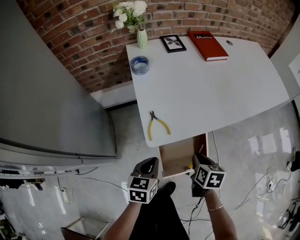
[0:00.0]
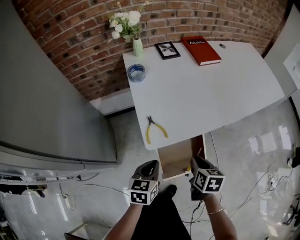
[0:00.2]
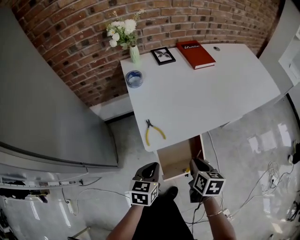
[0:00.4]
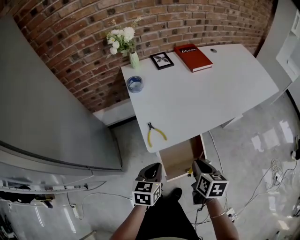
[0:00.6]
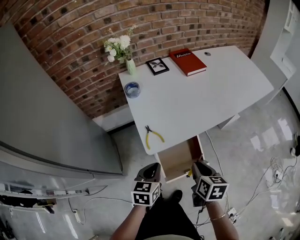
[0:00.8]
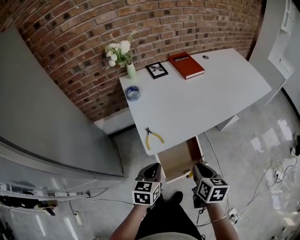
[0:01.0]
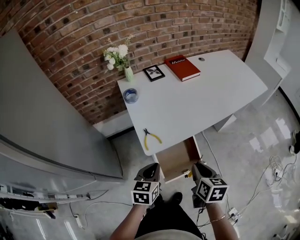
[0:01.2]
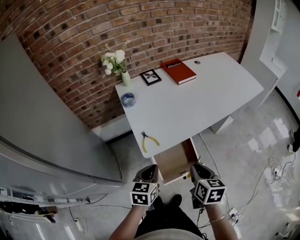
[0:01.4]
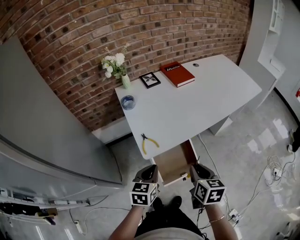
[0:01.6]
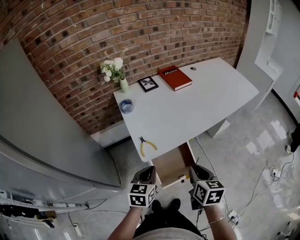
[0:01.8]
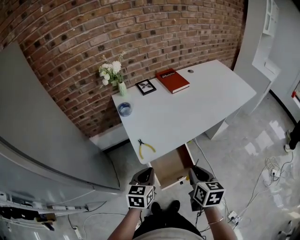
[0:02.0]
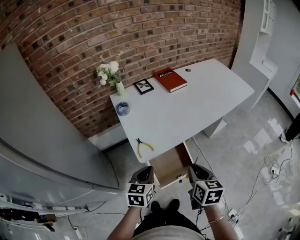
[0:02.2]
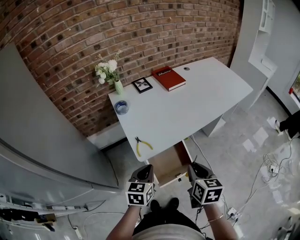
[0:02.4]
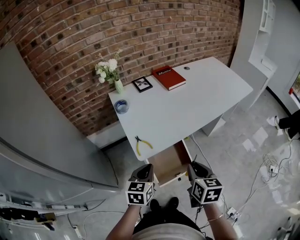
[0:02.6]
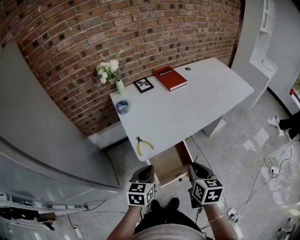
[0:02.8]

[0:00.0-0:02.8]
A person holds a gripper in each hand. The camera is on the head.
0:00.0 to 0:01.4: The right gripper moves upward and backward, some 15 cm, while the left gripper heads upward, covering about 10 cm.
0:01.4 to 0:02.8: The grippers make only small movements.

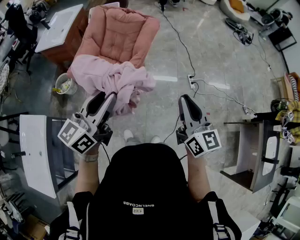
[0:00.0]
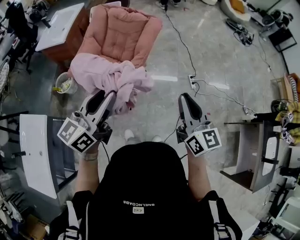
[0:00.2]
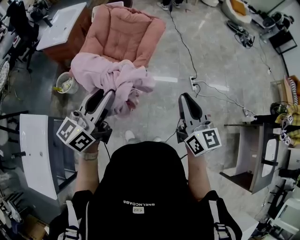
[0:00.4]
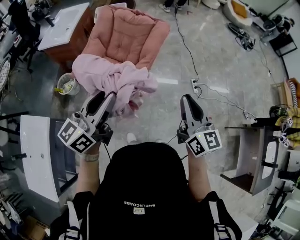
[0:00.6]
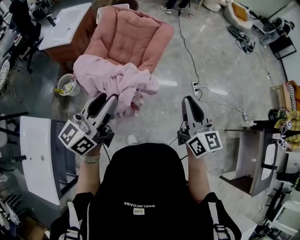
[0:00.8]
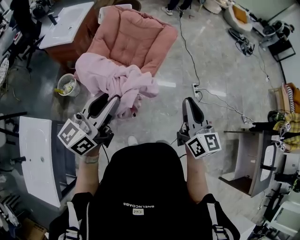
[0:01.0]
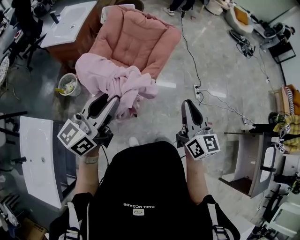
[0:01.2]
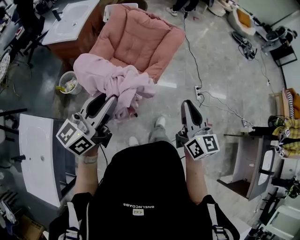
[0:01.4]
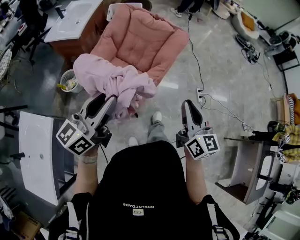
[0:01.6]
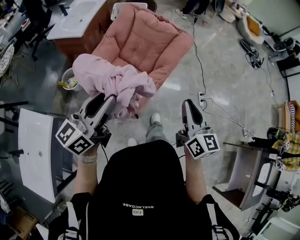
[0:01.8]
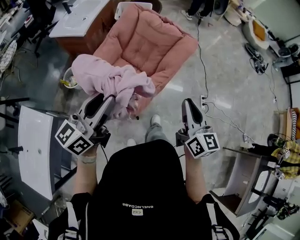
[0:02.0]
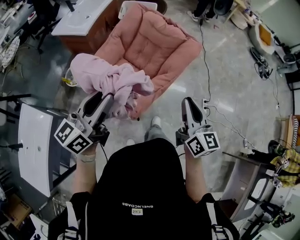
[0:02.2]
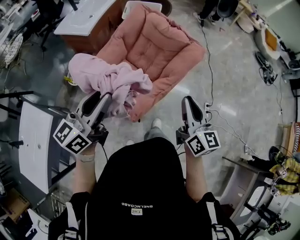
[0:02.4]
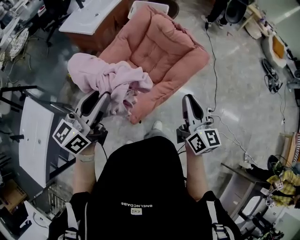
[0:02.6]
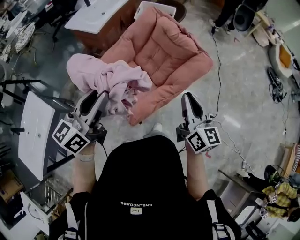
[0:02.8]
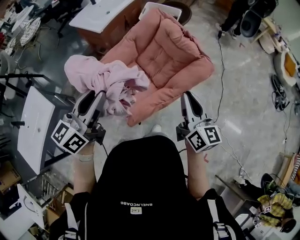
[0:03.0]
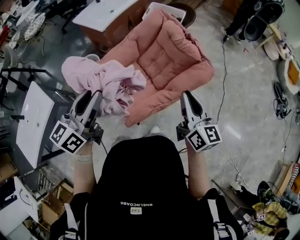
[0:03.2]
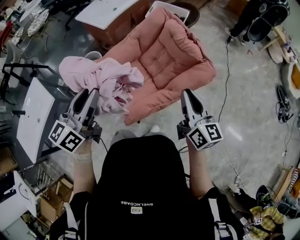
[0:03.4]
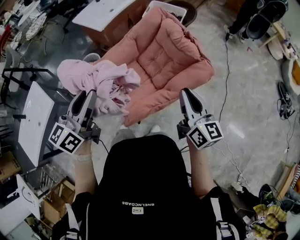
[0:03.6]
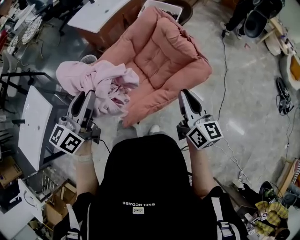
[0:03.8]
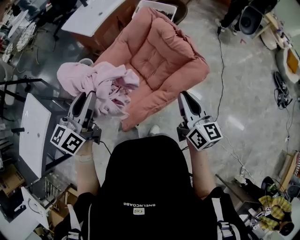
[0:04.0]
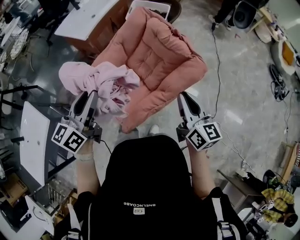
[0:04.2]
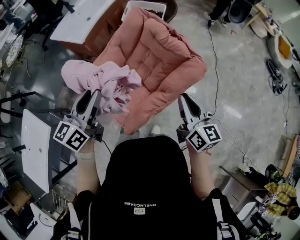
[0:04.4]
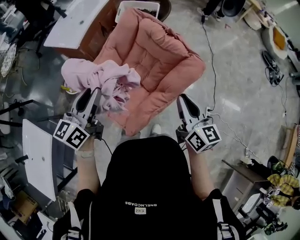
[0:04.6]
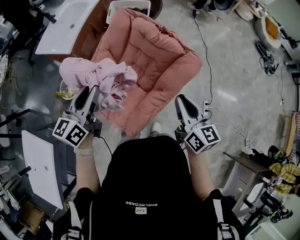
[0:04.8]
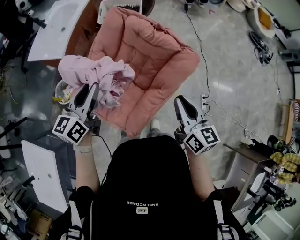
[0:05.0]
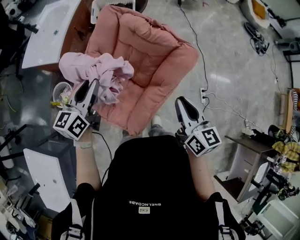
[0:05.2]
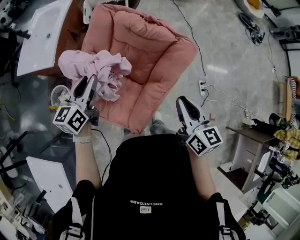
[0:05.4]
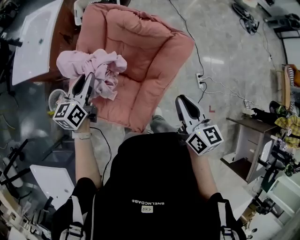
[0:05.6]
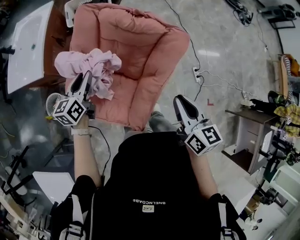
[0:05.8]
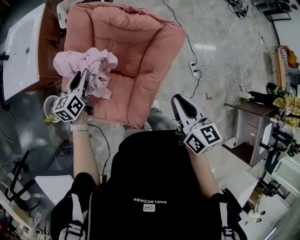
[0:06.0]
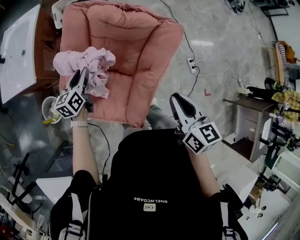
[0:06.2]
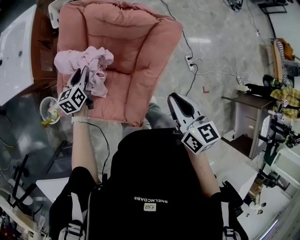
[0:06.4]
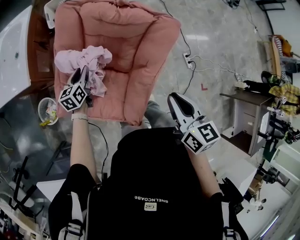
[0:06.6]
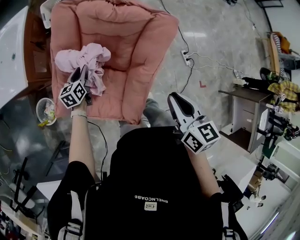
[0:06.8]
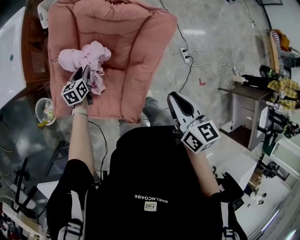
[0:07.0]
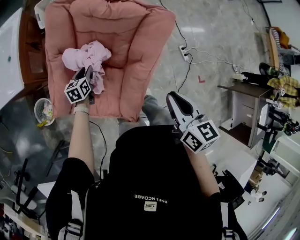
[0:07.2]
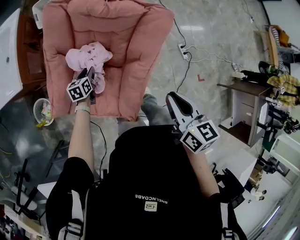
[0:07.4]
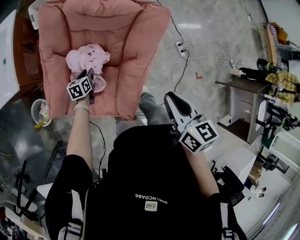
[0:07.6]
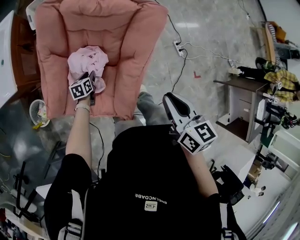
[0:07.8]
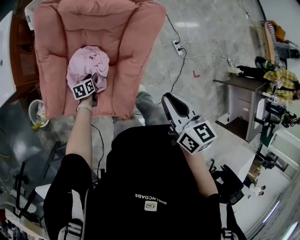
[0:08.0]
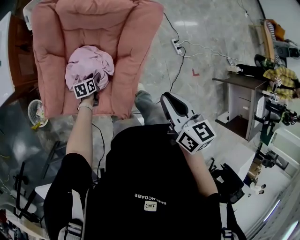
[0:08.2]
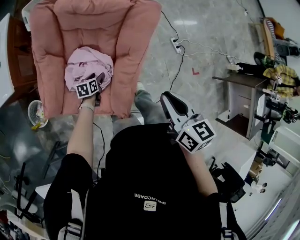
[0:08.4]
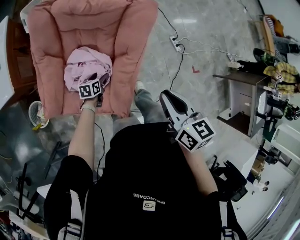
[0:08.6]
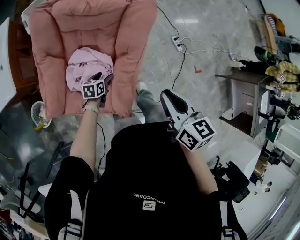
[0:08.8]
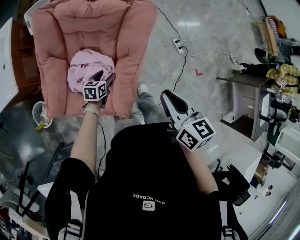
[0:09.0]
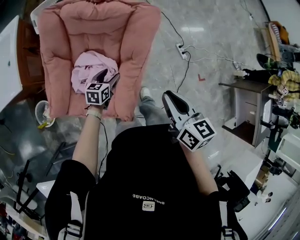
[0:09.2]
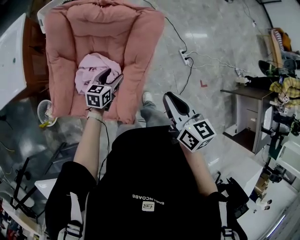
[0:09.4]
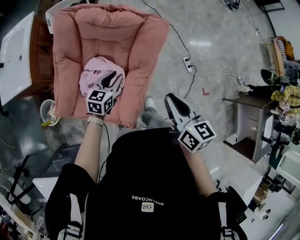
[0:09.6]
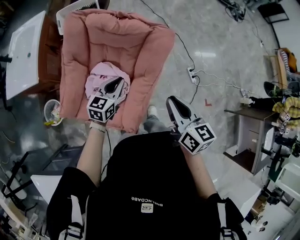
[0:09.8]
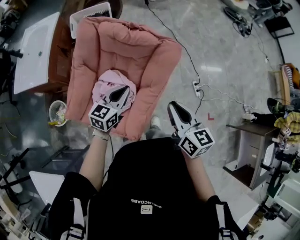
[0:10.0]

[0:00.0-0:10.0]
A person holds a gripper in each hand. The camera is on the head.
0:00.0 to 0:01.4: The two grippers go approximately 20 cm to the left.
0:01.4 to 0:02.8: The left gripper is displaced forward by about 20 cm, and swivels about 30 degrees, while the right gripper shifts approximately 25 cm forward, and rotates approximately 20 degrees.
0:02.8 to 0:04.2: The two grippers go some 10 cm forward.
0:04.2 to 0:05.8: The right gripper ends up roughly 10 cm from where it was, and changes its angle by approximately 30 degrees. Meanwhile the left gripper changes place by approximately 30 cm, and rotates some 30 degrees.
0:05.8 to 0:07.2: The left gripper is displaced downward by some 25 cm, and swivels about 20 degrees.
0:07.2 to 0:08.6: The right gripper changes place by some 5 cm. The left gripper heads to the right, downward and backward, covering approximately 20 cm, turns by approximately 20 degrees, and opens its fingers.
0:08.6 to 0:10.0: The right gripper moves forward, about 5 cm; the left gripper shifts roughly 30 cm upward, changes its angle by roughly 40 degrees, and closes up.

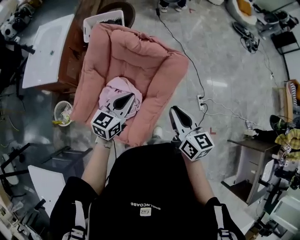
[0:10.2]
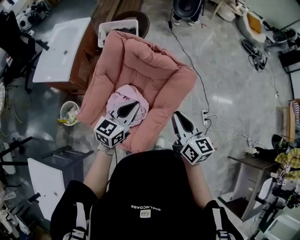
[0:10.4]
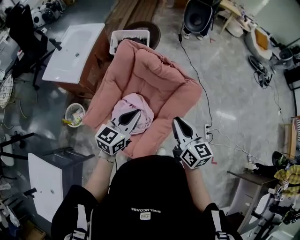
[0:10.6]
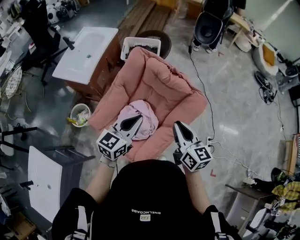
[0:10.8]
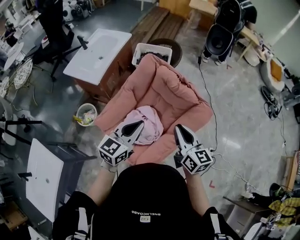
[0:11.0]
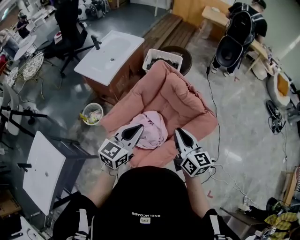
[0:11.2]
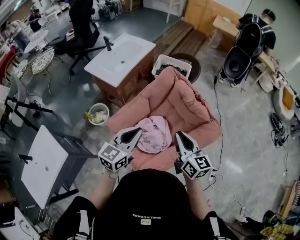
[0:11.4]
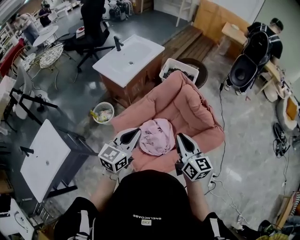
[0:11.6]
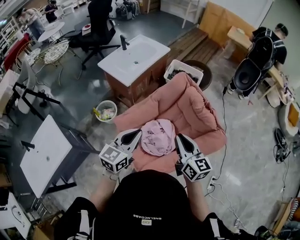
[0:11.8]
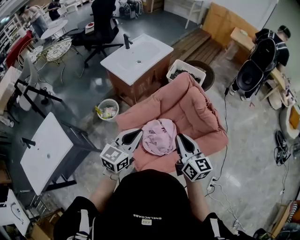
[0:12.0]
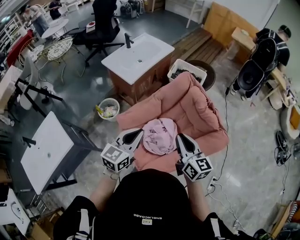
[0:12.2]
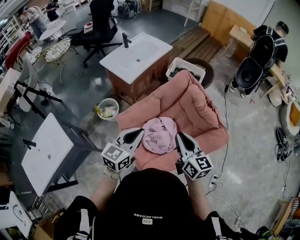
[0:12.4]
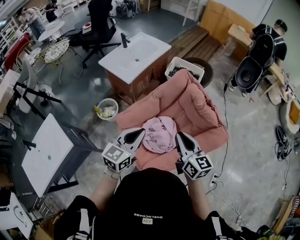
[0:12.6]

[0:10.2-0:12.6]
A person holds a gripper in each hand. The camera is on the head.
0:10.2 to 0:11.4: The left gripper changes place by roughly 20 cm, and turns by roughly 30 degrees; the right gripper moves some 15 cm, and changes its angle by about 30 degrees.
0:11.4 to 0:12.6: There are only small adjustments of the grippers.

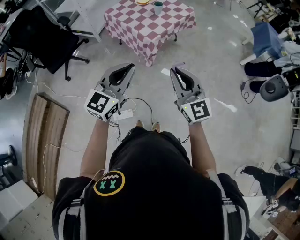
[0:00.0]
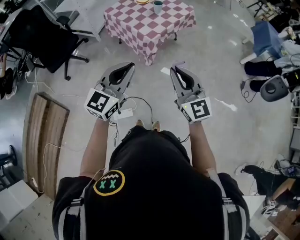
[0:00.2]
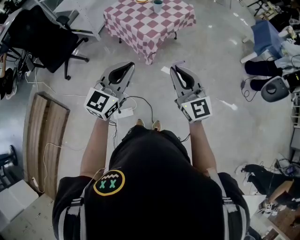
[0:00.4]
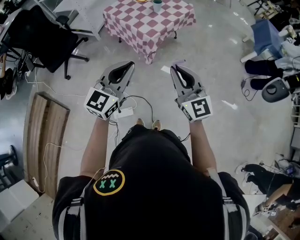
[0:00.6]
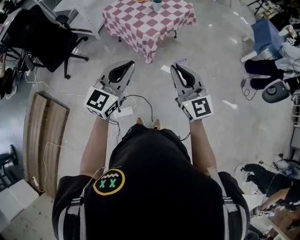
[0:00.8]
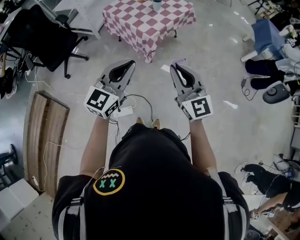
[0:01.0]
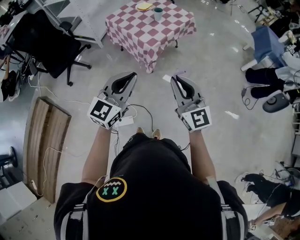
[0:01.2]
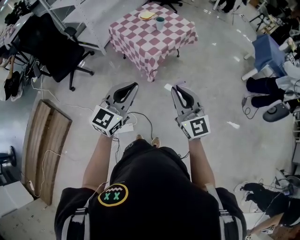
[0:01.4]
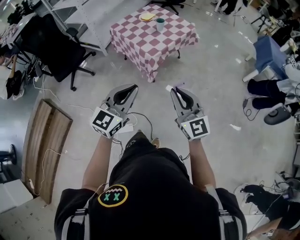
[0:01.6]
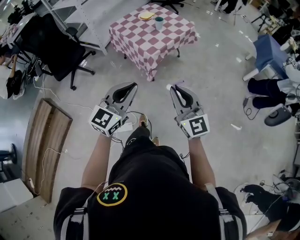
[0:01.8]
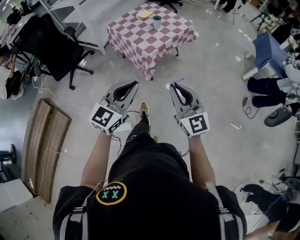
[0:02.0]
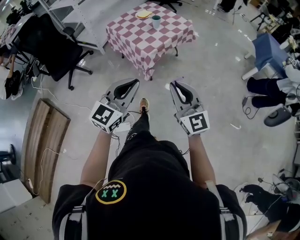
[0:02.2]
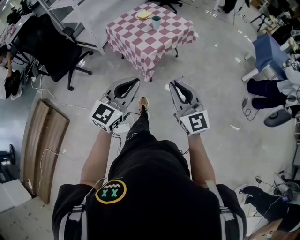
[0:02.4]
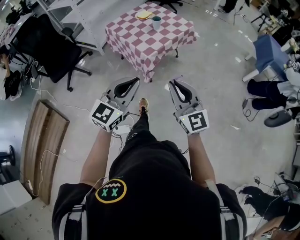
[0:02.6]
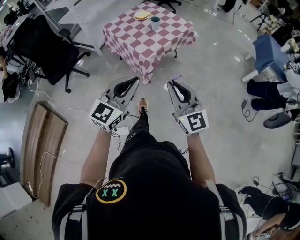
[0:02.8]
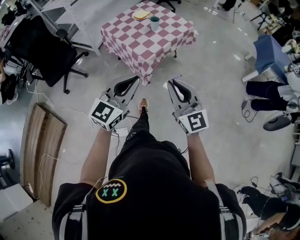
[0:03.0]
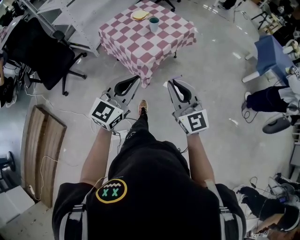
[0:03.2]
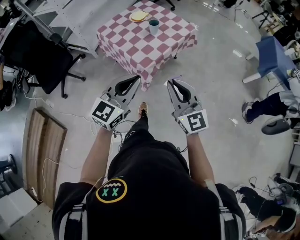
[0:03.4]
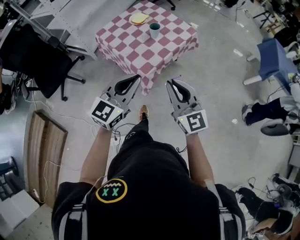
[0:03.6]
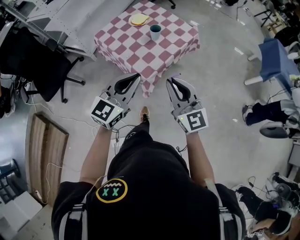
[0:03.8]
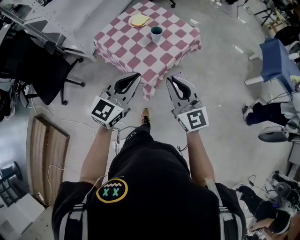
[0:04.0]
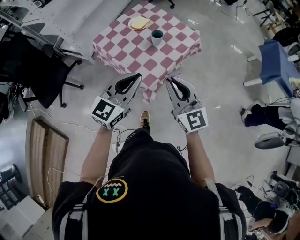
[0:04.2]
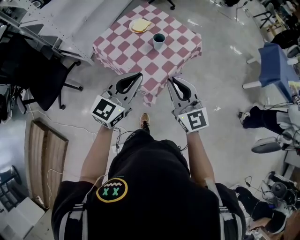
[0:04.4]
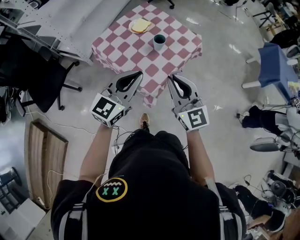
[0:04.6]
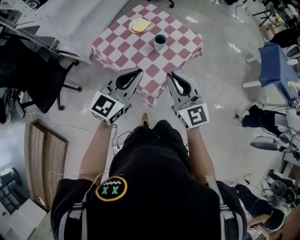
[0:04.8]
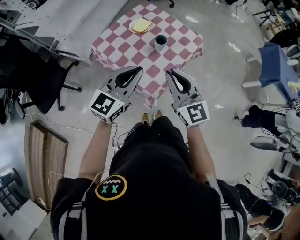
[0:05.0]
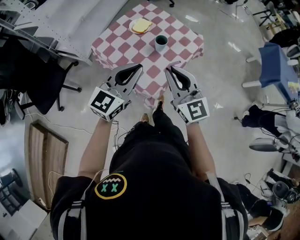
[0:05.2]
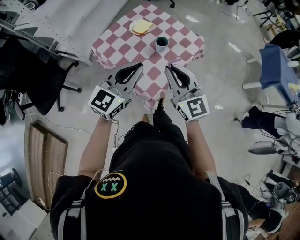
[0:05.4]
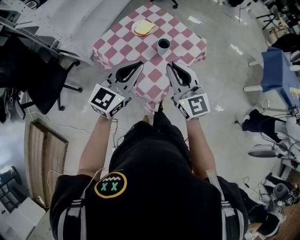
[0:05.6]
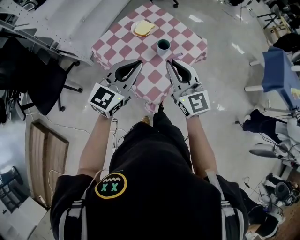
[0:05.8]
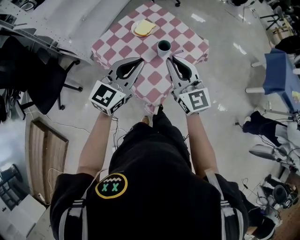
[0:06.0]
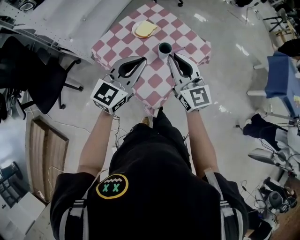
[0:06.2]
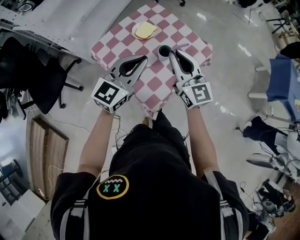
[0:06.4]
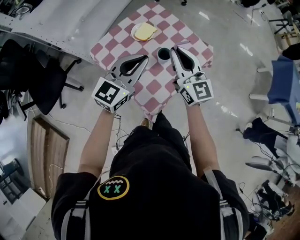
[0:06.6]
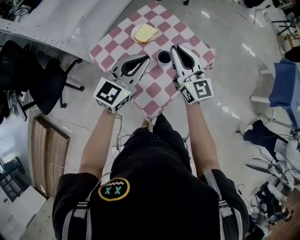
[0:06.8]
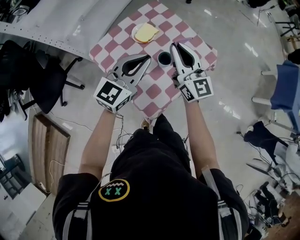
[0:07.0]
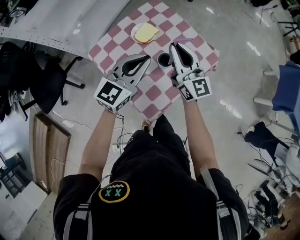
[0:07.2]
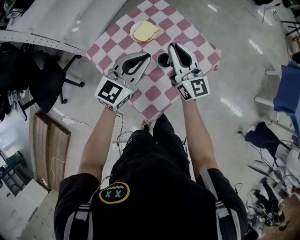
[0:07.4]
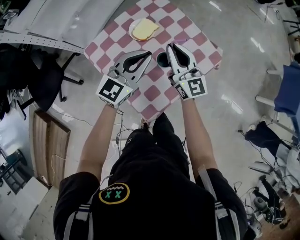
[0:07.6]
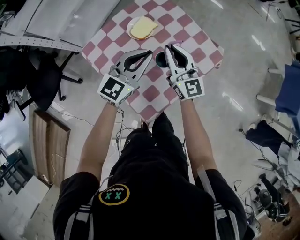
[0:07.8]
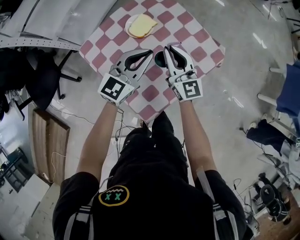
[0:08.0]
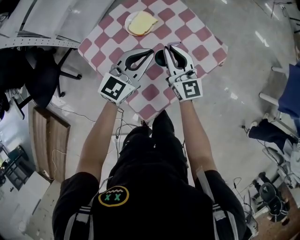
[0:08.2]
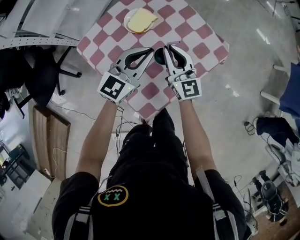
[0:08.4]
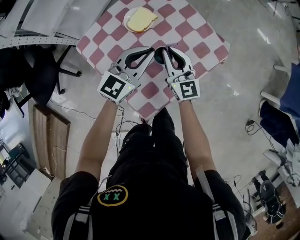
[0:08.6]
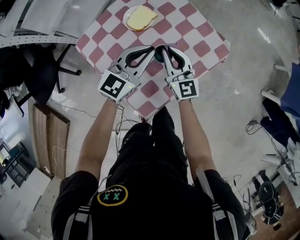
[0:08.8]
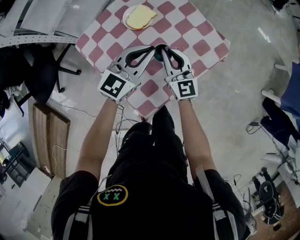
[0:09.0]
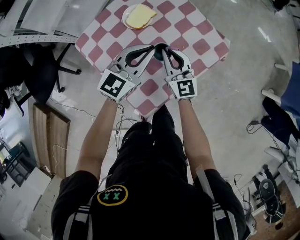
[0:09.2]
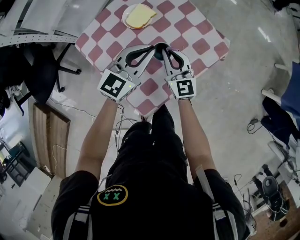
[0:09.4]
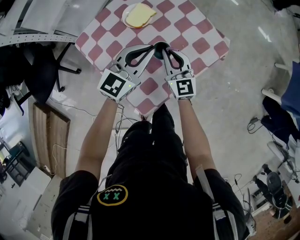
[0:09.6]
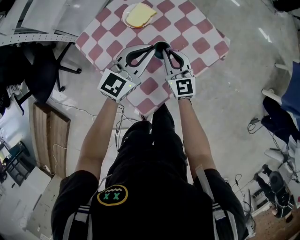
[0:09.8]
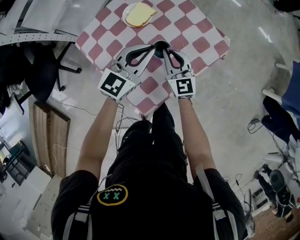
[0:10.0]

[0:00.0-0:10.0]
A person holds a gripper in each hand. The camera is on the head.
0:00.0 to 0:01.4: The grippers stay close to where they were, moving slightly.
0:01.4 to 0:02.8: The right gripper moves forward, about 5 cm, while the left gripper is displaced forward and to the right by some 10 cm.
0:02.8 to 0:04.2: Both grippers move forward, about 30 cm.
0:04.2 to 0:05.8: The two grippers go some 15 cm forward.
0:05.8 to 0:07.2: Both grippers move forward, roughly 20 cm.
0:07.2 to 0:08.6: The left gripper travels downward and forward by roughly 15 cm; the right gripper moves downward, some 15 cm.
0:08.6 to 0:10.0: The grippers stay close to where they were, moving slightly.
